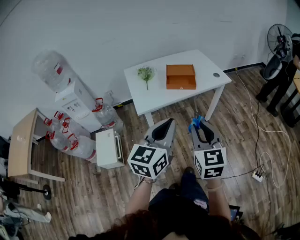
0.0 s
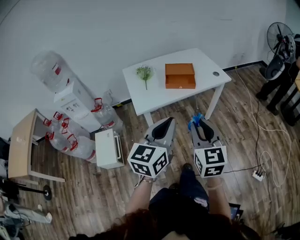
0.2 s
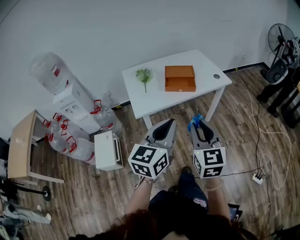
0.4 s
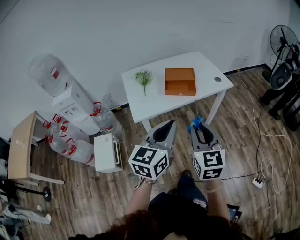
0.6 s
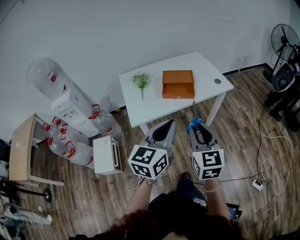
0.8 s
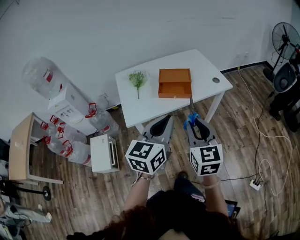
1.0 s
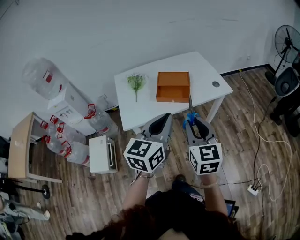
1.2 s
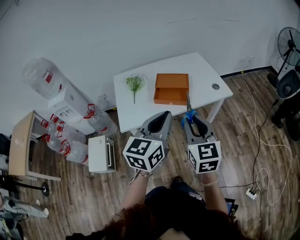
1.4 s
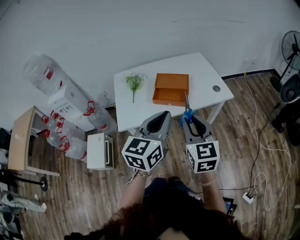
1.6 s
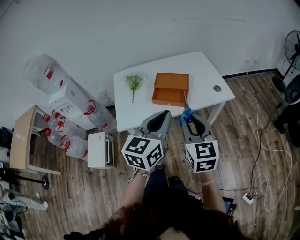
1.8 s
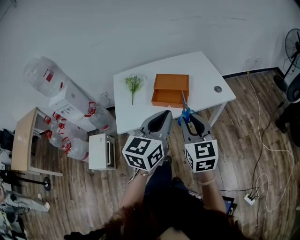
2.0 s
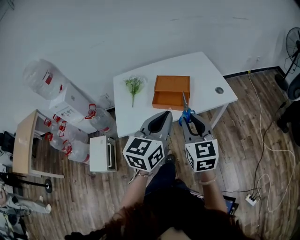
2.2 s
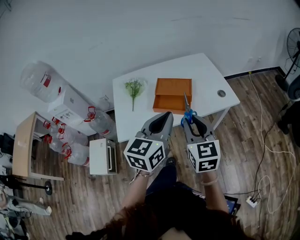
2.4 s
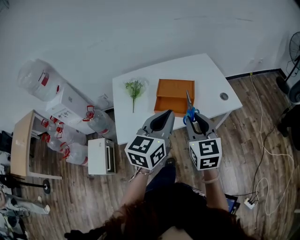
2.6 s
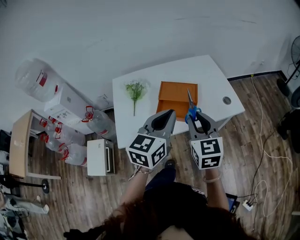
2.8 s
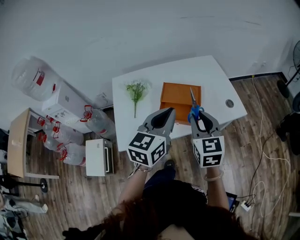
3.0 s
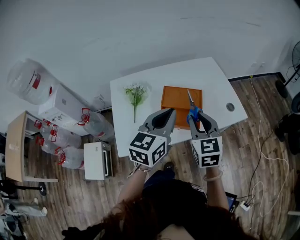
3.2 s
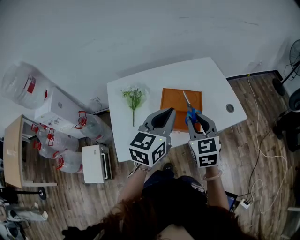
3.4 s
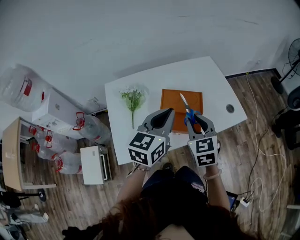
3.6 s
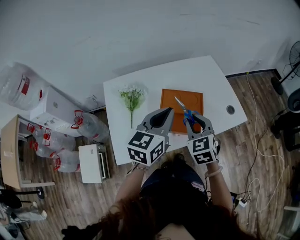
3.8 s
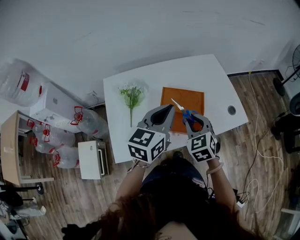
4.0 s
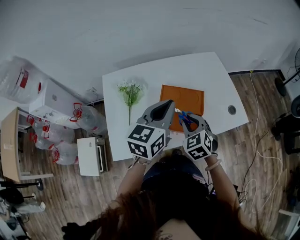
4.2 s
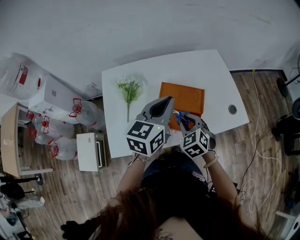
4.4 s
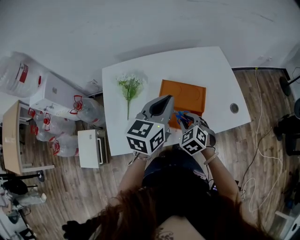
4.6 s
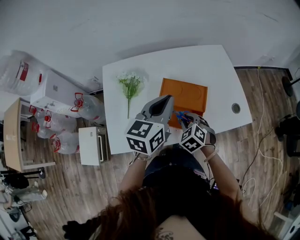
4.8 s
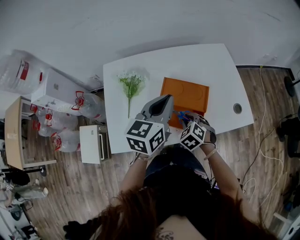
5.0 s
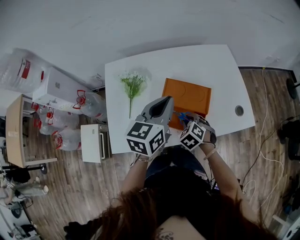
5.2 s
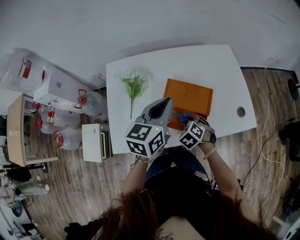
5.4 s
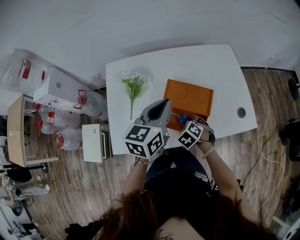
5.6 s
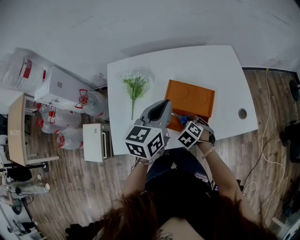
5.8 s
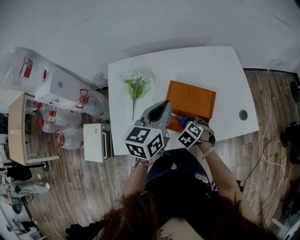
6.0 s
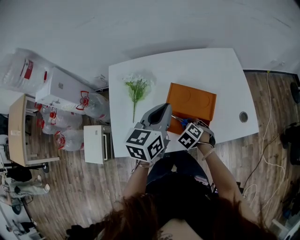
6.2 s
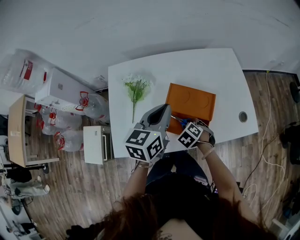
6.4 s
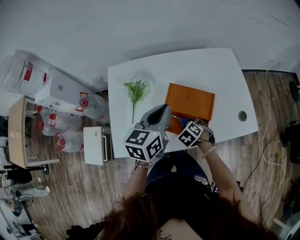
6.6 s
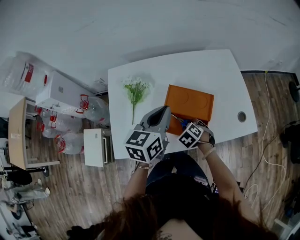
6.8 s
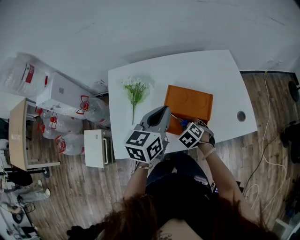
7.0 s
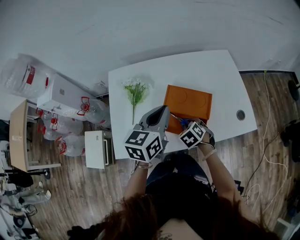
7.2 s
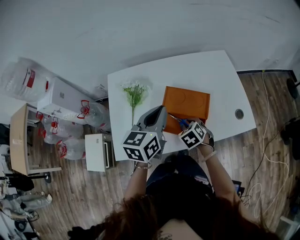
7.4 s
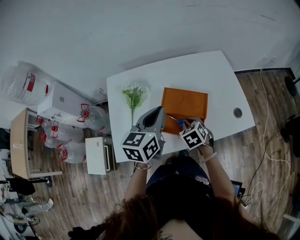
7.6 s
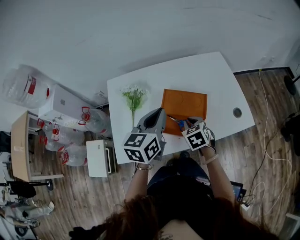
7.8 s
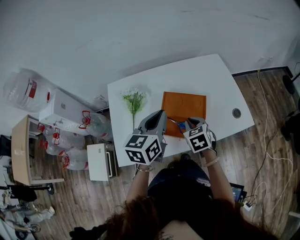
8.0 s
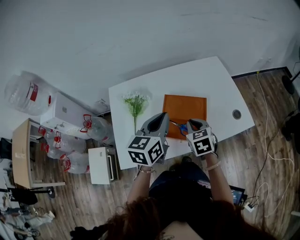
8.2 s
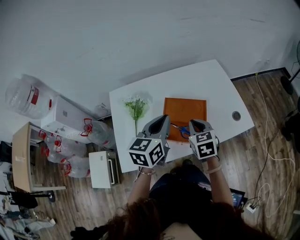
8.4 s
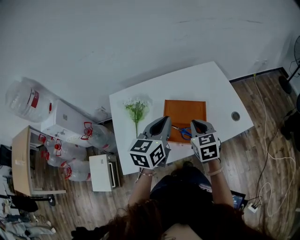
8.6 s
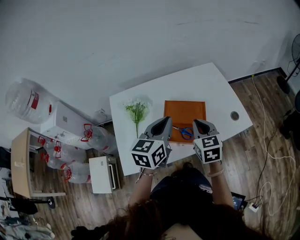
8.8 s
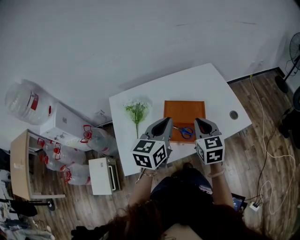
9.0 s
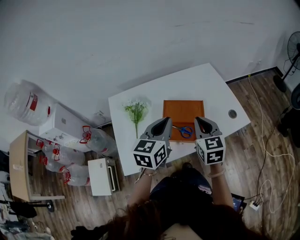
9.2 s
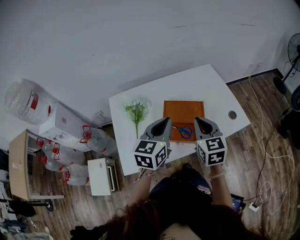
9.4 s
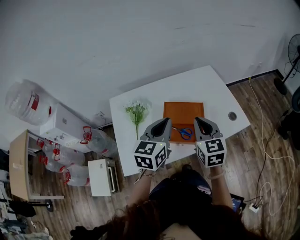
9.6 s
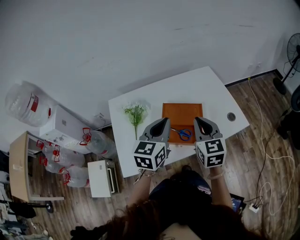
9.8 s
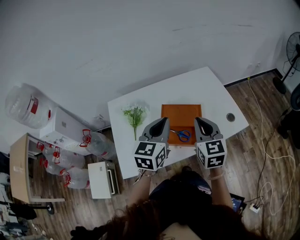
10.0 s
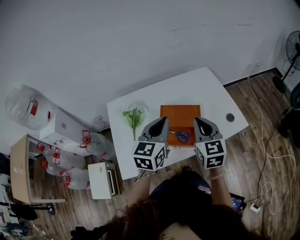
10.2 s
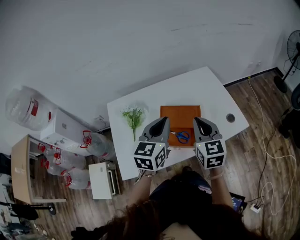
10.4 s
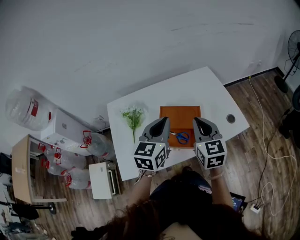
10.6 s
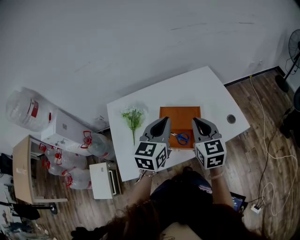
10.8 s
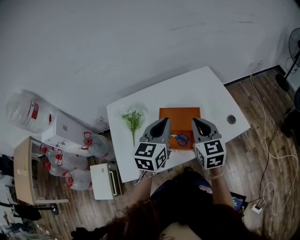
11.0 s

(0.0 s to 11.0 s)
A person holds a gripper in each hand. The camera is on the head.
0.0 s - 1.6 s: Both grippers move forward, approximately 25 cm.
1.6 s - 3.2 s: Both grippers move forward, some 20 cm.
3.2 s - 4.8 s: The left gripper is displaced forward and downward by about 15 cm; the right gripper heads downward and forward, covering about 20 cm, and tips its fingers downward by roughly 40 degrees.
4.8 s - 6.2 s: The right gripper heads downward, covering about 10 cm.
6.2 s - 7.8 s: The right gripper shifts approximately 10 cm upward, and swivels some 30 degrees.
7.8 s - 9.4 s: The right gripper travels upward by some 15 cm, and angles its fingers upward, by approximately 30 degrees.
9.4 s - 11.0 s: The left gripper ends up about 5 cm from where it was.

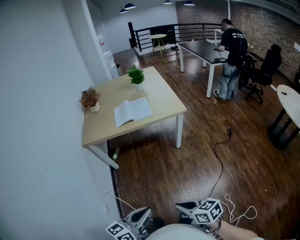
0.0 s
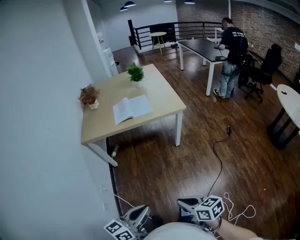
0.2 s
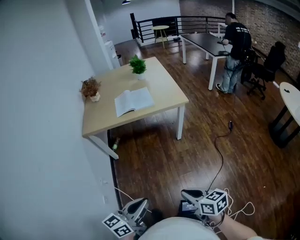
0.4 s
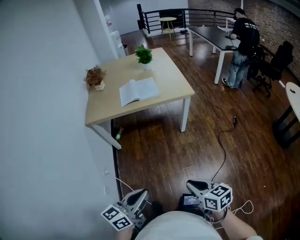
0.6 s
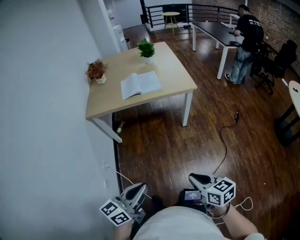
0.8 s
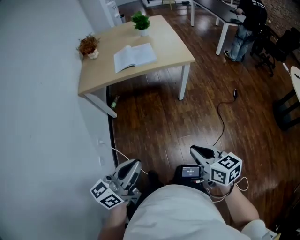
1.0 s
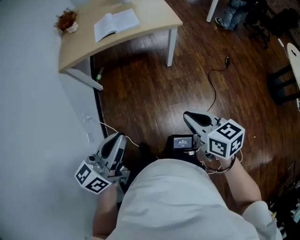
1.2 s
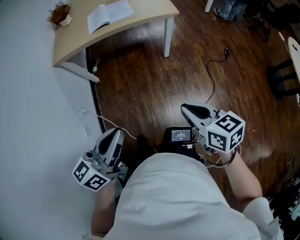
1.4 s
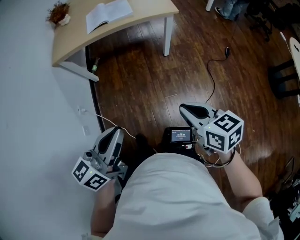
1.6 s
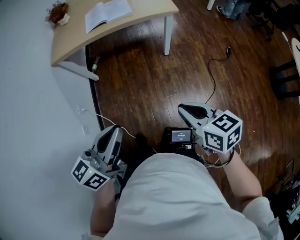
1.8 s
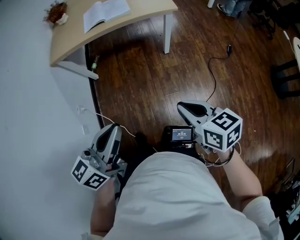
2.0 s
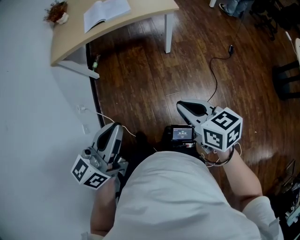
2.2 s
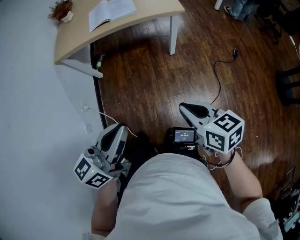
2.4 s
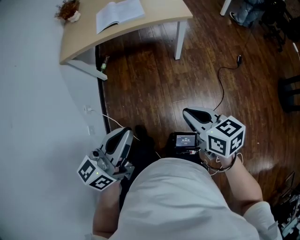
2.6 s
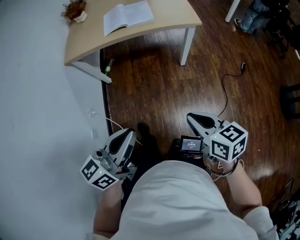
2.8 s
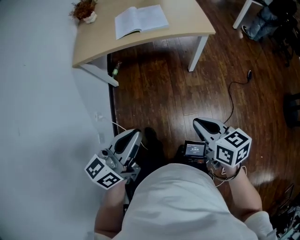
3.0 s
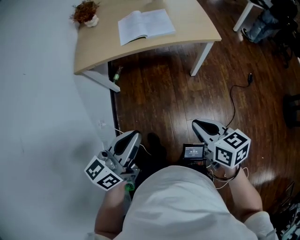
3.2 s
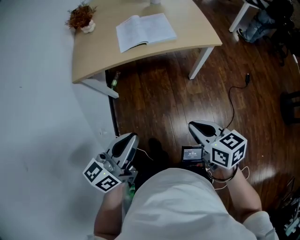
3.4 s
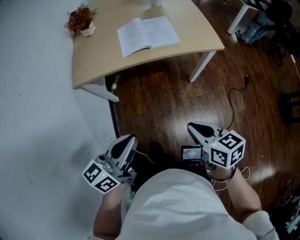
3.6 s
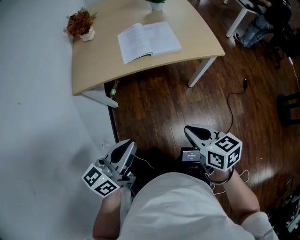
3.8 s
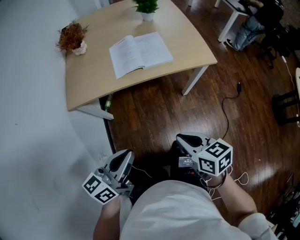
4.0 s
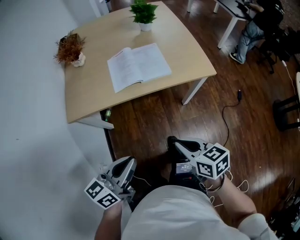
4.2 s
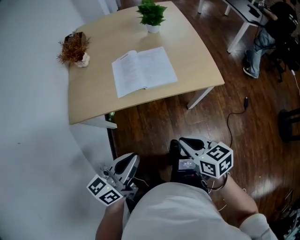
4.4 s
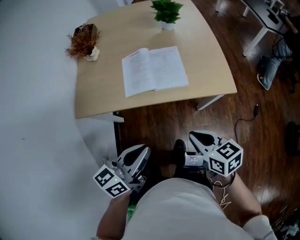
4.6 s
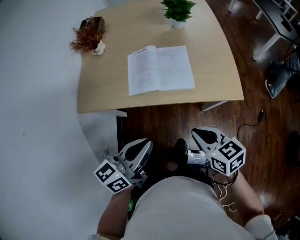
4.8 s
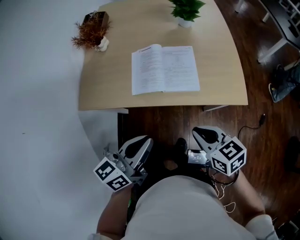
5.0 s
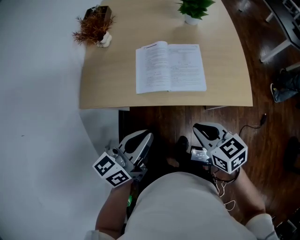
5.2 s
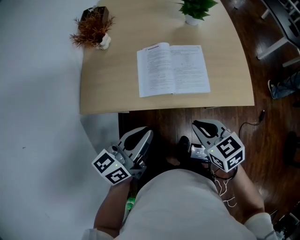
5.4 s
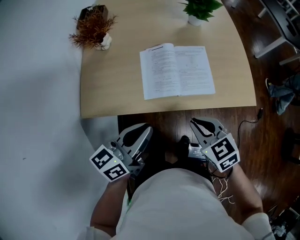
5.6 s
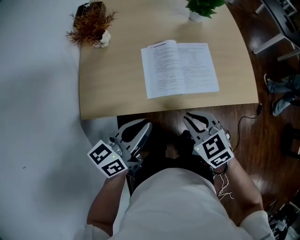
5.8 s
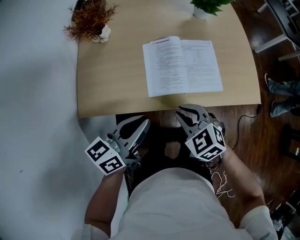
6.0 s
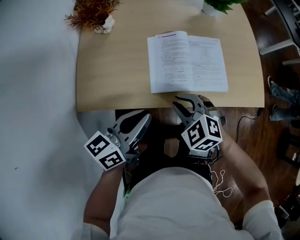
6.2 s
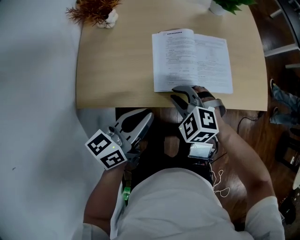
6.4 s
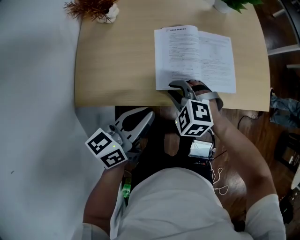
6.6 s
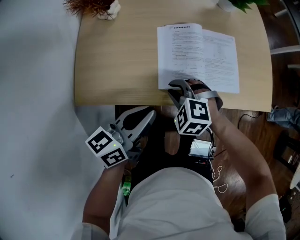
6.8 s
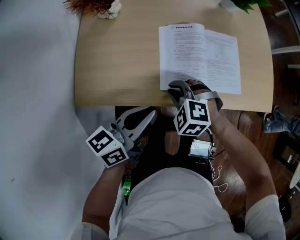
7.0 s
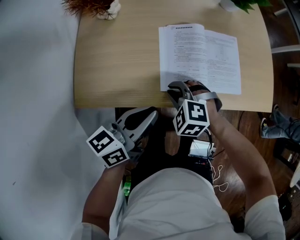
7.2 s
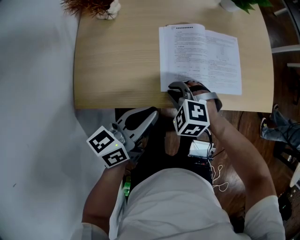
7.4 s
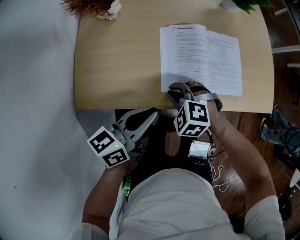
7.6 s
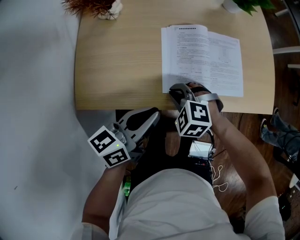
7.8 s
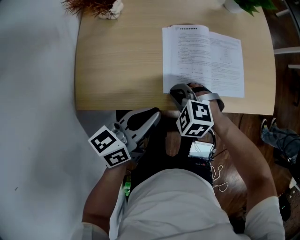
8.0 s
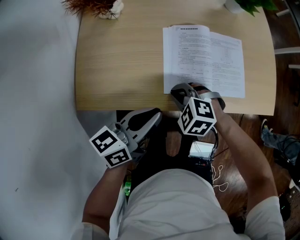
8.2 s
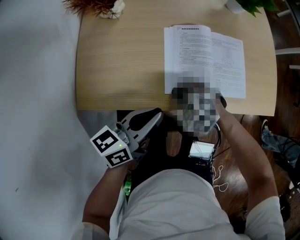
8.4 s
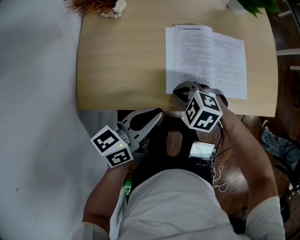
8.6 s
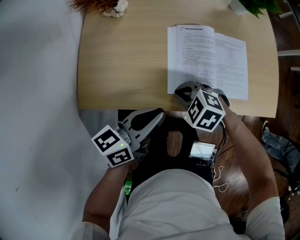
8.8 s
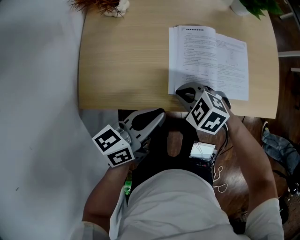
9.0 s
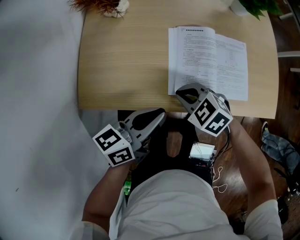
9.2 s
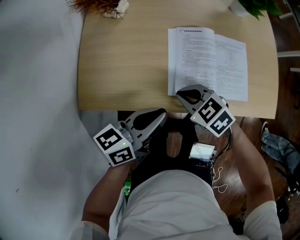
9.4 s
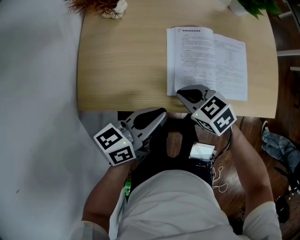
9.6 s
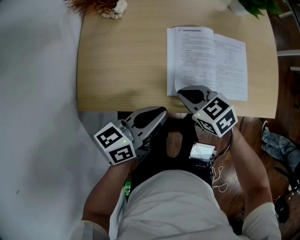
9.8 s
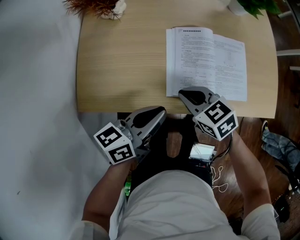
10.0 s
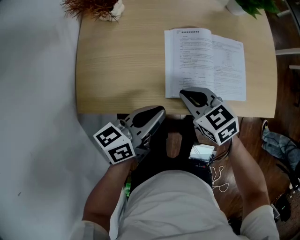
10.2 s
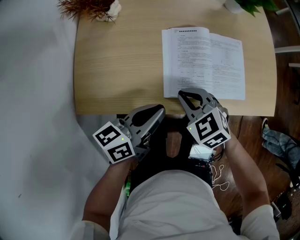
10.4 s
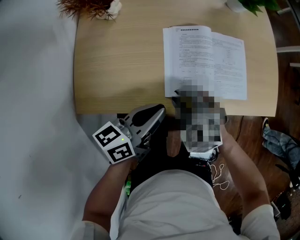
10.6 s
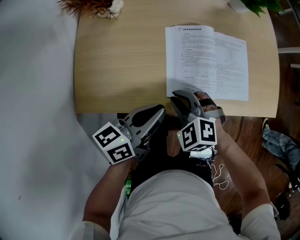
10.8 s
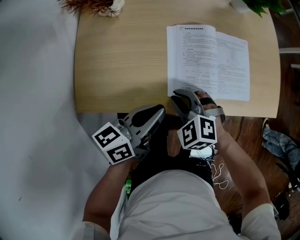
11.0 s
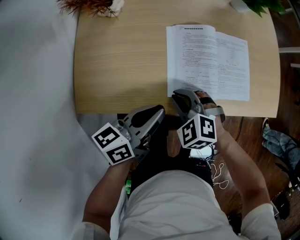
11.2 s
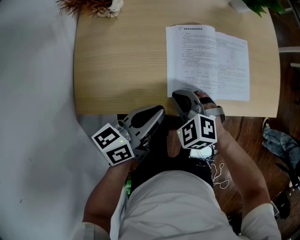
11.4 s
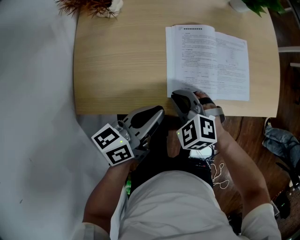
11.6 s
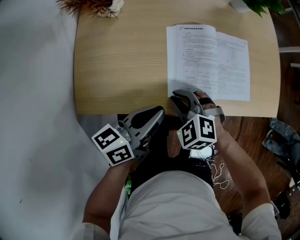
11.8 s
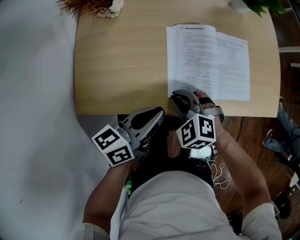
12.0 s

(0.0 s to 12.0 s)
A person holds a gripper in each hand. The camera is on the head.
0.0 s - 1.6 s: The right gripper moves to the right and forward, some 15 cm.
1.6 s - 3.0 s: The left gripper heads forward, covering some 10 cm; the right gripper heads forward and to the left, covering about 10 cm.
3.0 s - 4.4 s: Both grippers travel together forward, approximately 25 cm.
4.4 s - 6.0 s: The right gripper heads forward and to the left, covering roughly 25 cm, and rolls counterclockwise, seen from behind, by roughly 40 degrees. Meanwhile the left gripper is displaced forward by about 25 cm.
6.0 s - 7.6 s: The left gripper travels downward by approximately 5 cm. The right gripper moves downward, to the left and forward, roughly 15 cm, and swivels about 30 degrees.
7.6 s - 9.0 s: The grippers stay close to where they were, moving slightly.
9.0 s - 10.4 s: The right gripper changes its angle by approximately 20 degrees.
10.4 s - 12.0 s: The right gripper ends up roughly 5 cm from where it was, and changes its angle by roughly 20 degrees.

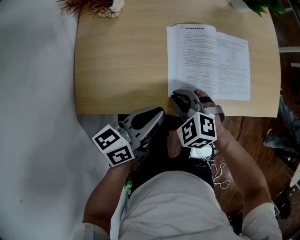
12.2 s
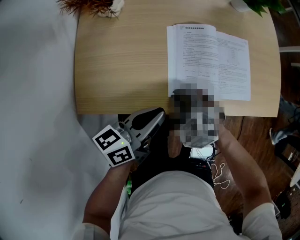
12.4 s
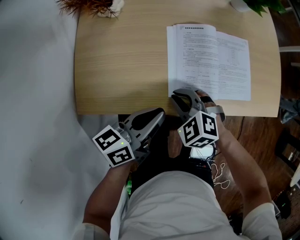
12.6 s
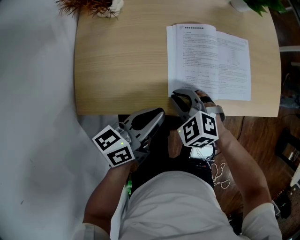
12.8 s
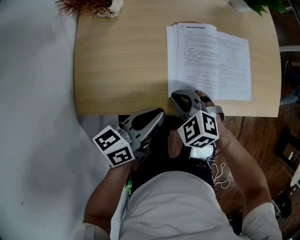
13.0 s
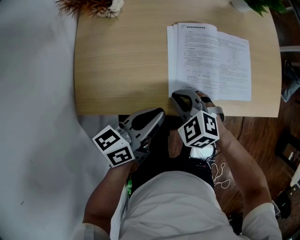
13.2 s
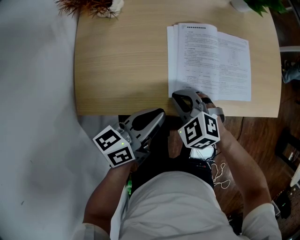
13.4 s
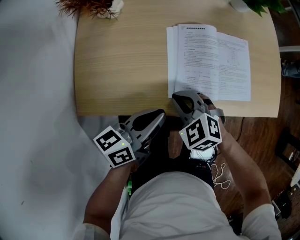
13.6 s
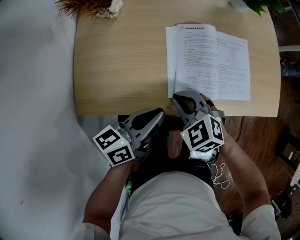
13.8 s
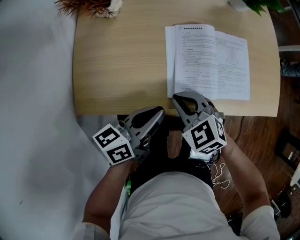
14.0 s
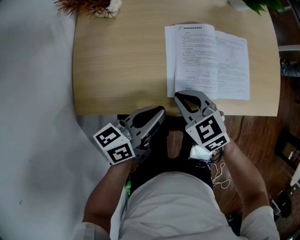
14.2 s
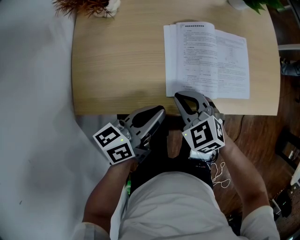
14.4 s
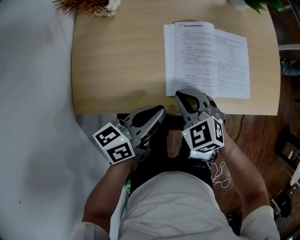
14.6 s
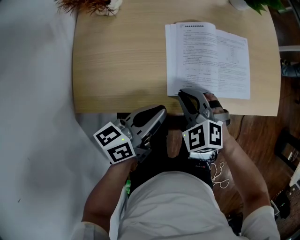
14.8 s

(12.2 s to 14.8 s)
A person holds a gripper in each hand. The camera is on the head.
12.2 s - 13.4 s: The grippers stay close to where they were, moving slightly.
